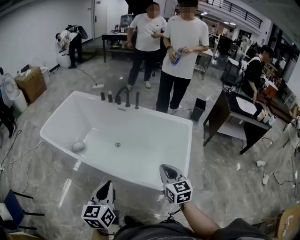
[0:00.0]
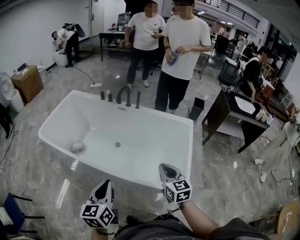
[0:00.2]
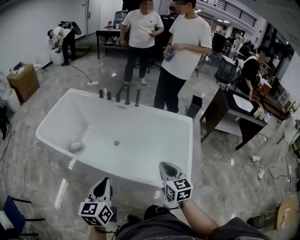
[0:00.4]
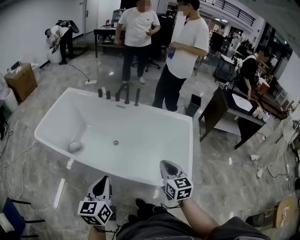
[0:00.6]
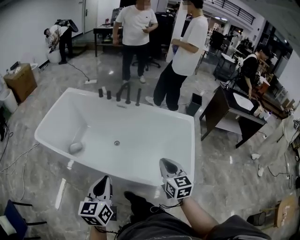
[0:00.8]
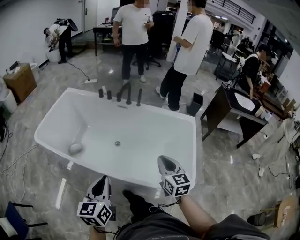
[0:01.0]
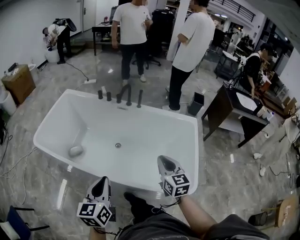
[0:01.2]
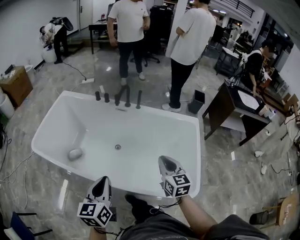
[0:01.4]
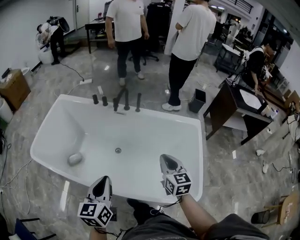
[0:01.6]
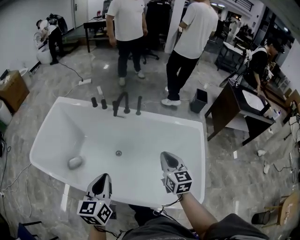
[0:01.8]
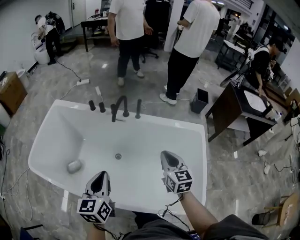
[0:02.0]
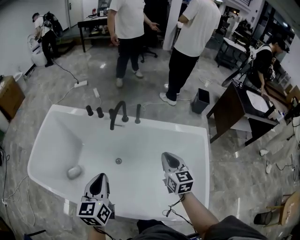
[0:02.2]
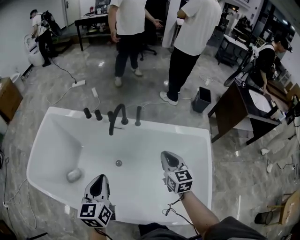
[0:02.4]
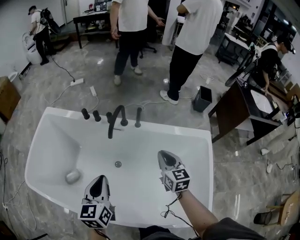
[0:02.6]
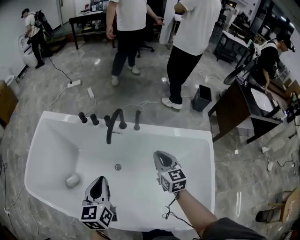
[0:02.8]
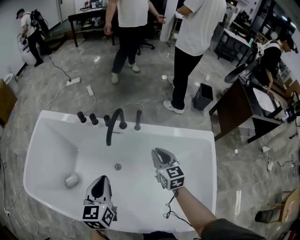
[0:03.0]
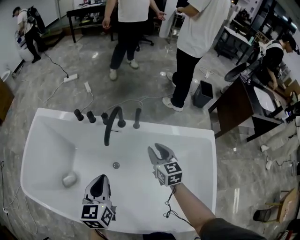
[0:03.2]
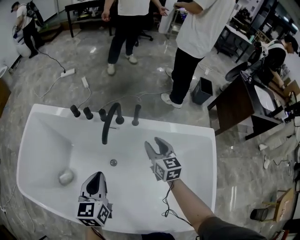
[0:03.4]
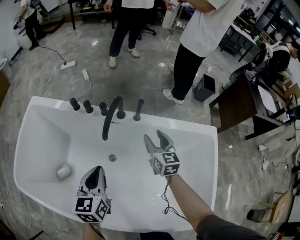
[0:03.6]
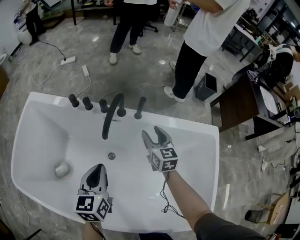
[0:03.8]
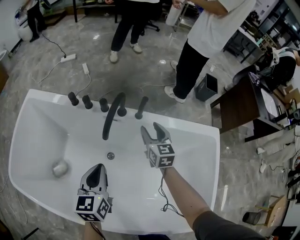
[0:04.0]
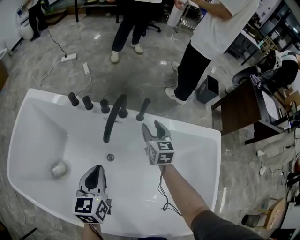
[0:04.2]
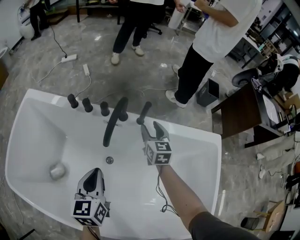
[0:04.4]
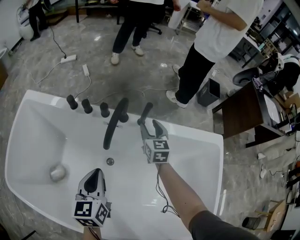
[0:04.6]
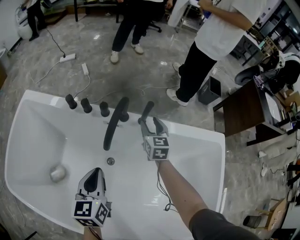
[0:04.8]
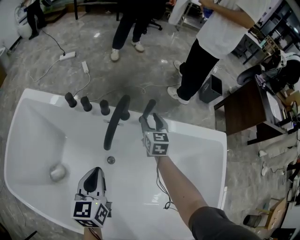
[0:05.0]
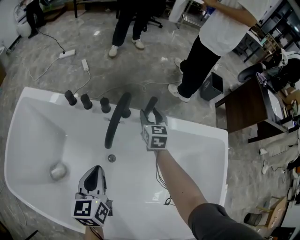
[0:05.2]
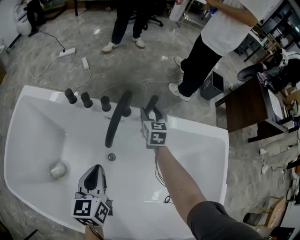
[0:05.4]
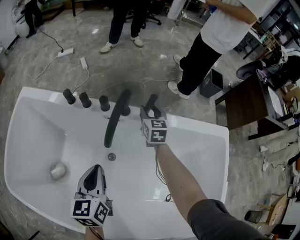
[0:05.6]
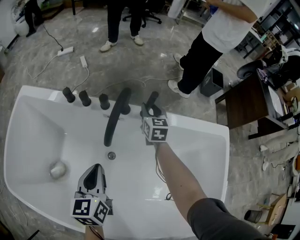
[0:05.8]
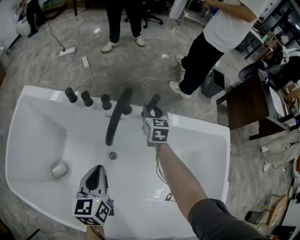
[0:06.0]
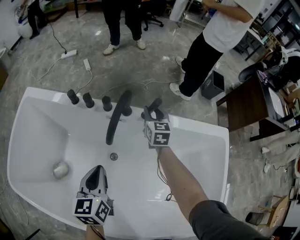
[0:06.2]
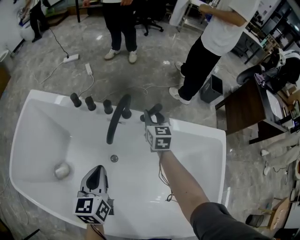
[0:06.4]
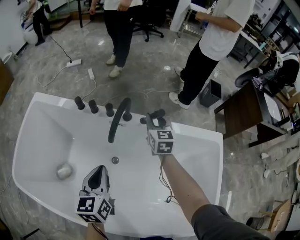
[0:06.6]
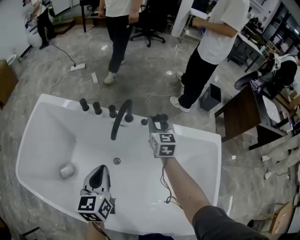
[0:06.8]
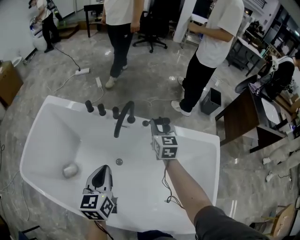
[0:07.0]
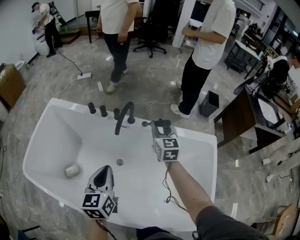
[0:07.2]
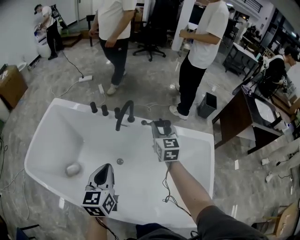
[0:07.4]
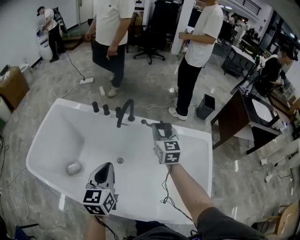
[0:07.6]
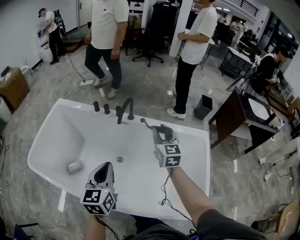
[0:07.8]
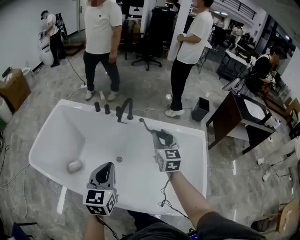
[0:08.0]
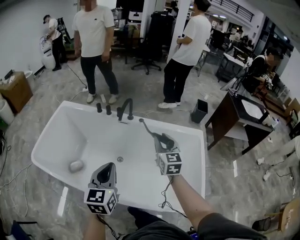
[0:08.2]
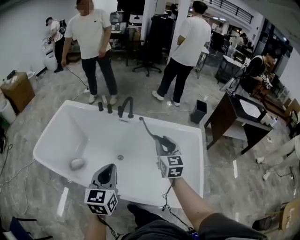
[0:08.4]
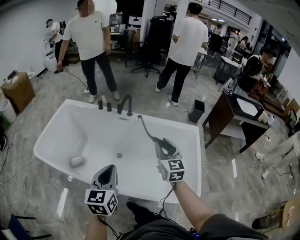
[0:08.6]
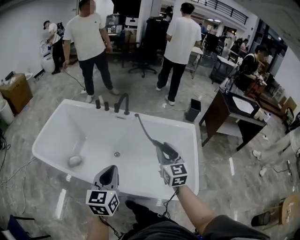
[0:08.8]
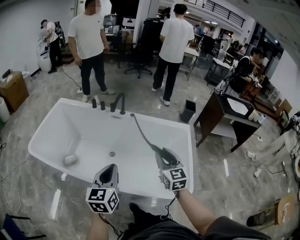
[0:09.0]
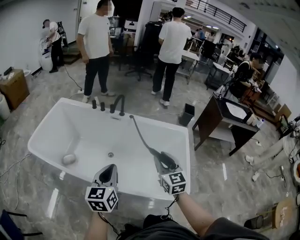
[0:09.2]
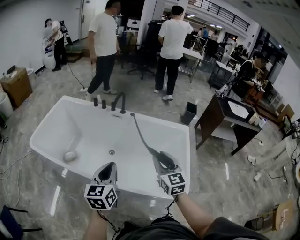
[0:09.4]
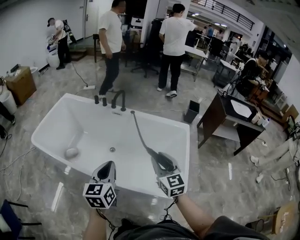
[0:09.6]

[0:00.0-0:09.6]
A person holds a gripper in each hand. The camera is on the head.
0.0 to 1.6 s: The grippers both shift forward and to the left by some 25 cm.
1.6 to 3.2 s: The two grippers go approximately 30 cm forward.
3.2 to 4.8 s: The right gripper shifts roughly 20 cm forward and downward, and opens up. The left gripper heads downward and forward, covering about 15 cm.
4.8 to 6.4 s: The grippers stay close to where they were, moving slightly.
6.4 to 8.0 s: The two grippers go approximately 35 cm backward and upward.
8.0 to 9.6 s: The left gripper travels backward and to the right by some 20 cm, while the right gripper is displaced backward by some 30 cm.

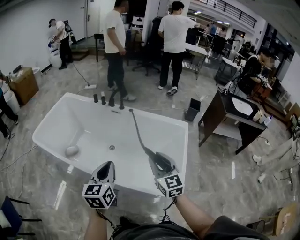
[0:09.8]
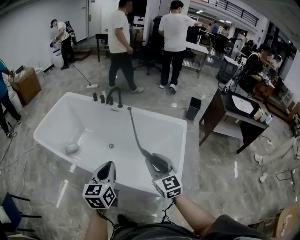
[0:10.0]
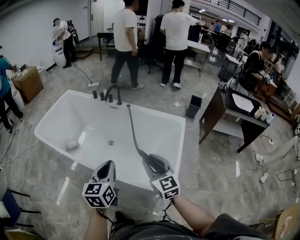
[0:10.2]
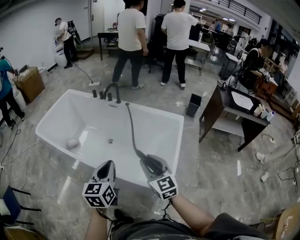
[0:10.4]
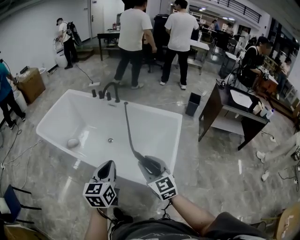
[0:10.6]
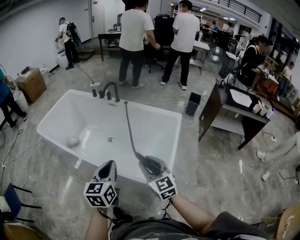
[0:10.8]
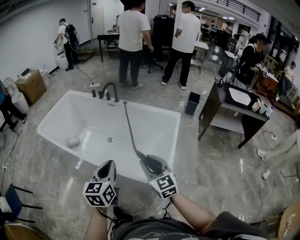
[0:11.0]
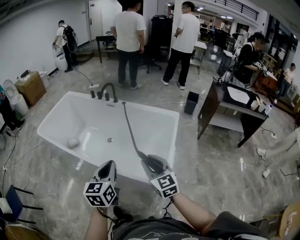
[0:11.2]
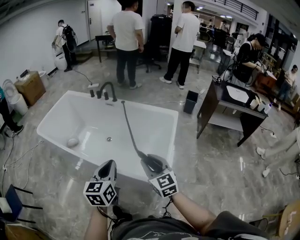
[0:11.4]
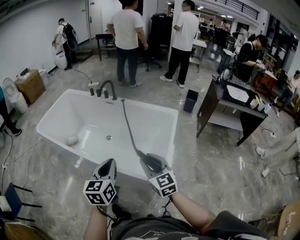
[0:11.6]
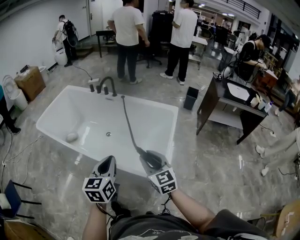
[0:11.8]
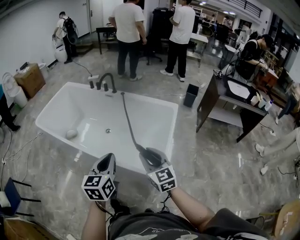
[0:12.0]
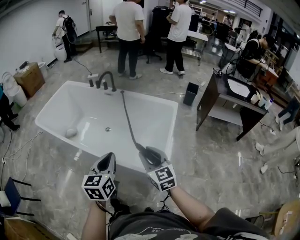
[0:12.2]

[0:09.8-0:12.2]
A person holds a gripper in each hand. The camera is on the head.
9.8 to 11.0 s: The grippers both shift backward and to the right by some 15 cm.
11.0 to 12.2 s: The grippers stay close to where they were, moving slightly.

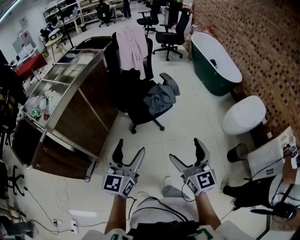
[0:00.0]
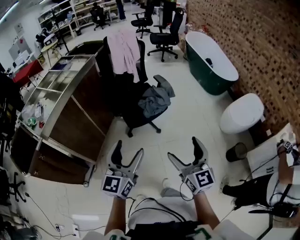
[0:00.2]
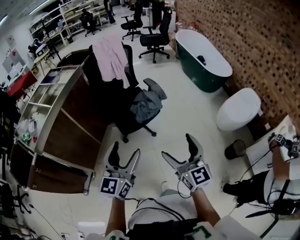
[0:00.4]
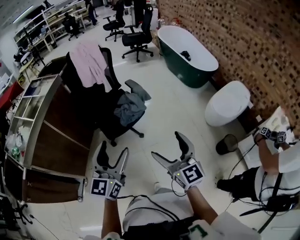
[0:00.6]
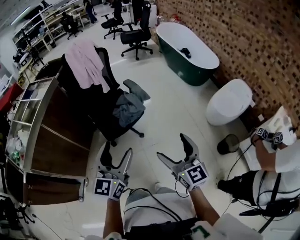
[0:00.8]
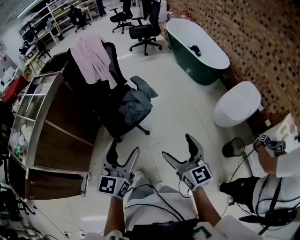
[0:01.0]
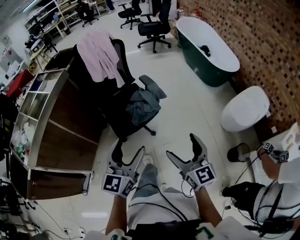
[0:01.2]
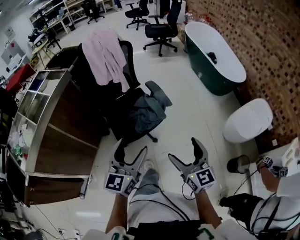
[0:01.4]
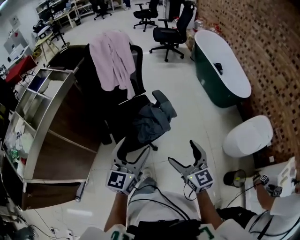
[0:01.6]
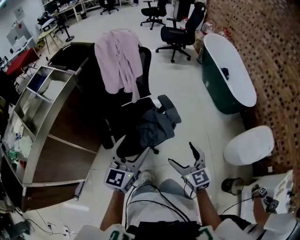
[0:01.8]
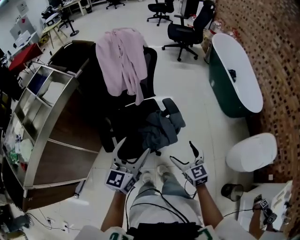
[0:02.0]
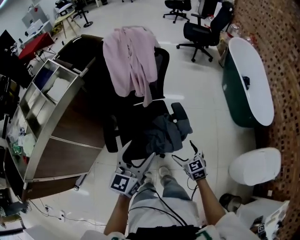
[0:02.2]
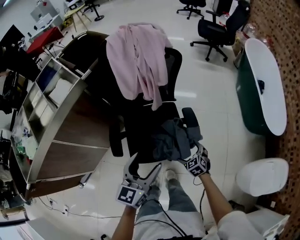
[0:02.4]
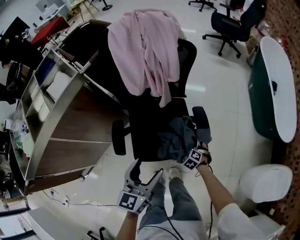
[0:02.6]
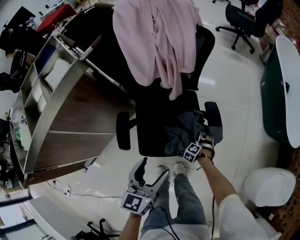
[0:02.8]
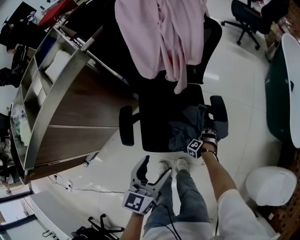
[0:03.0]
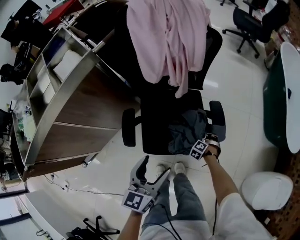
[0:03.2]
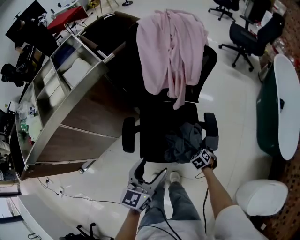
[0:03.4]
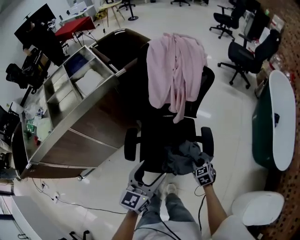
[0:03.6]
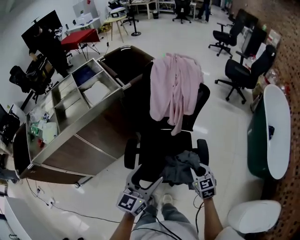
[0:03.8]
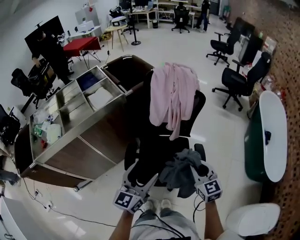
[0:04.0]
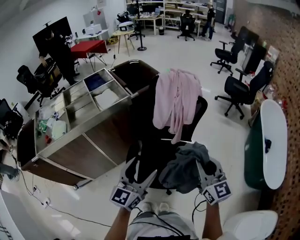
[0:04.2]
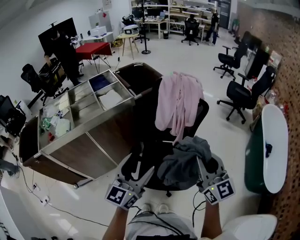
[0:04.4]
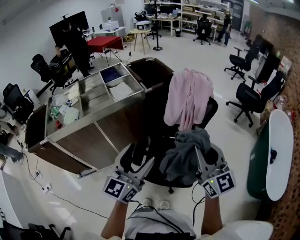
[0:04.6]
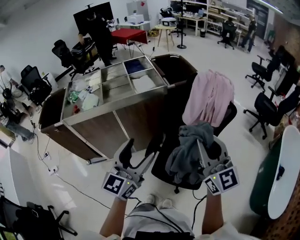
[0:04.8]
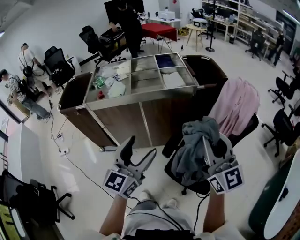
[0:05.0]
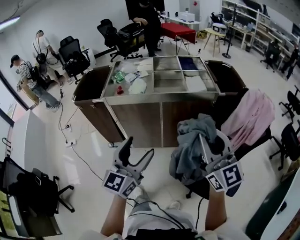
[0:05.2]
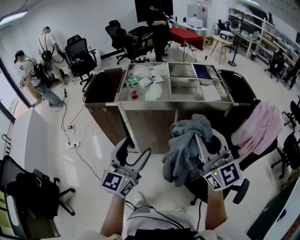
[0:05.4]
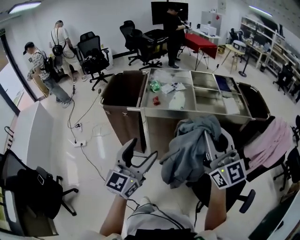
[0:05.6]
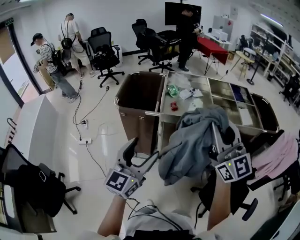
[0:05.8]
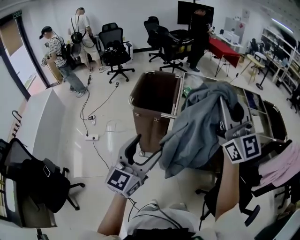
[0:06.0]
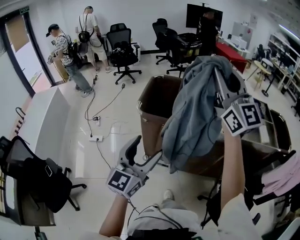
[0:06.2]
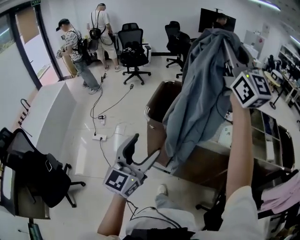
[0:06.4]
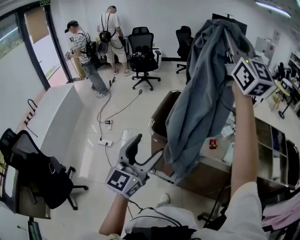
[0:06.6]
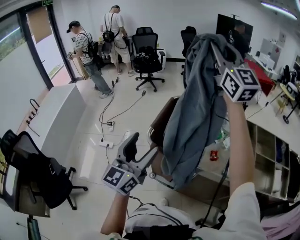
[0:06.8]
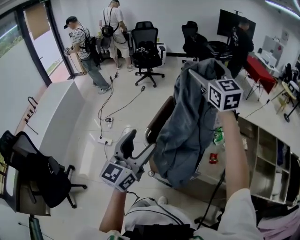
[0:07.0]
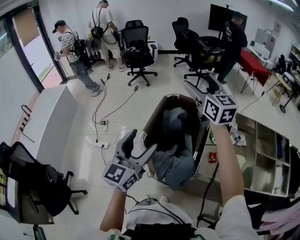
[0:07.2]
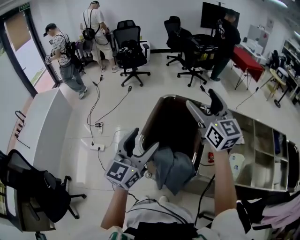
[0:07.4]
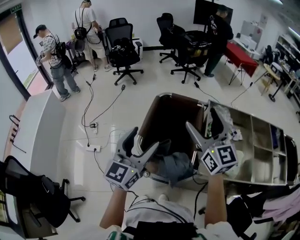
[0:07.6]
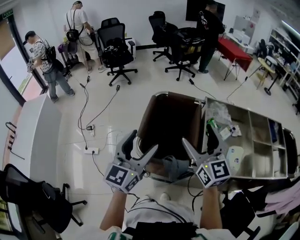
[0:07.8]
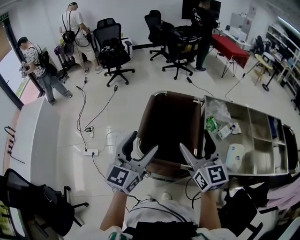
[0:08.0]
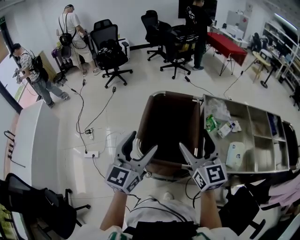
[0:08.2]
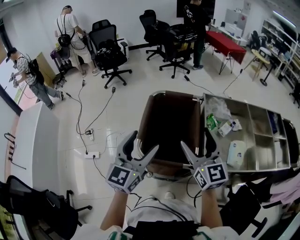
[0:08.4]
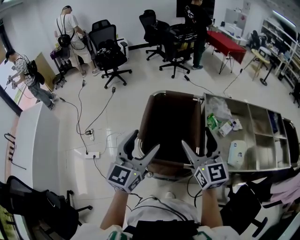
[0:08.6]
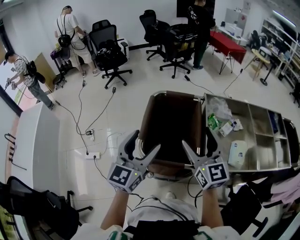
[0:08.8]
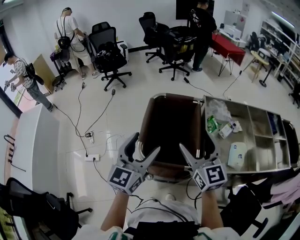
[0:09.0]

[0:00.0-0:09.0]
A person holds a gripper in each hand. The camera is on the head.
0.0 to 1.6 s: Both grippers move forward, roughly 40 cm.
1.6 to 3.0 s: The left gripper shifts by some 25 cm, and swivels roughly 30 degrees. The right gripper moves downward, approximately 50 cm, and angles its fingers downward, by about 50 degrees.
3.0 to 4.4 s: The left gripper shifts some 30 cm upward, and swivels some 30 degrees; the right gripper heads upward, covering roughly 70 cm, tips its fingers upward by about 70 degrees, and closes up.
4.4 to 6.0 s: The pair of grippers is taken some 70 cm. The left gripper turns by roughly 50 degrees, while the right gripper turns by some 50 degrees.
6.0 to 7.6 s: The right gripper goes some 35 cm forward and downward, rotates some 20 degrees, and opens up. Meanwhile the left gripper heads forward, covering about 35 cm.
7.6 to 9.0 s: The right gripper travels downward by about 10 cm.

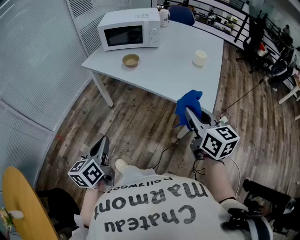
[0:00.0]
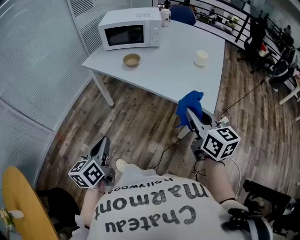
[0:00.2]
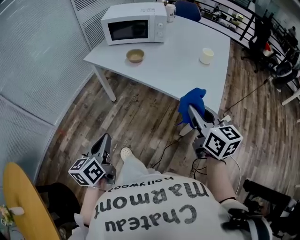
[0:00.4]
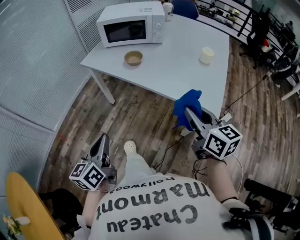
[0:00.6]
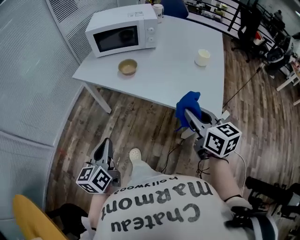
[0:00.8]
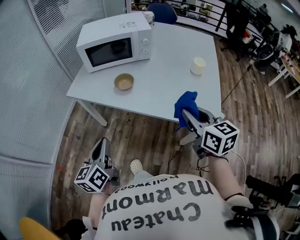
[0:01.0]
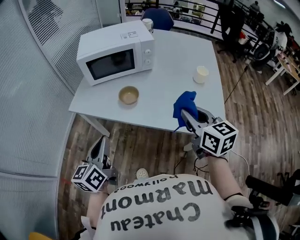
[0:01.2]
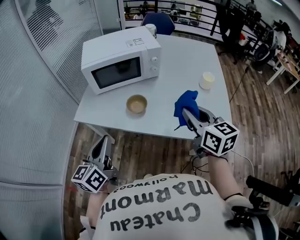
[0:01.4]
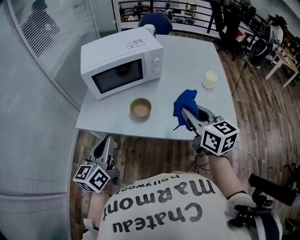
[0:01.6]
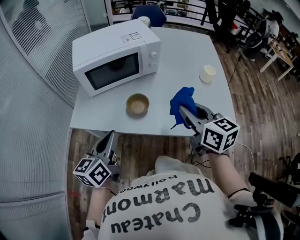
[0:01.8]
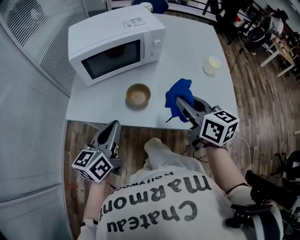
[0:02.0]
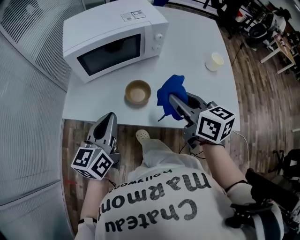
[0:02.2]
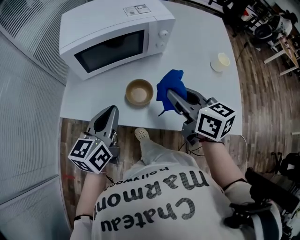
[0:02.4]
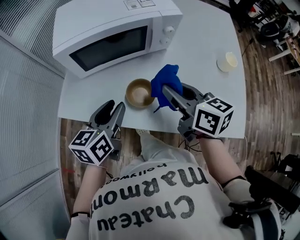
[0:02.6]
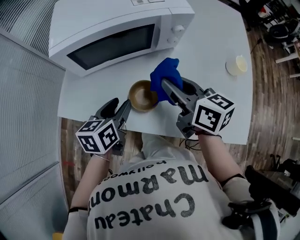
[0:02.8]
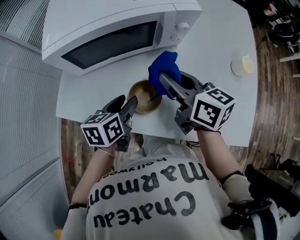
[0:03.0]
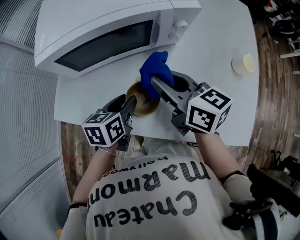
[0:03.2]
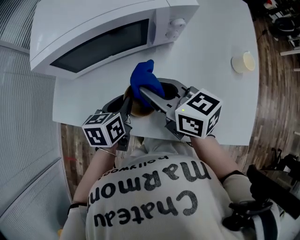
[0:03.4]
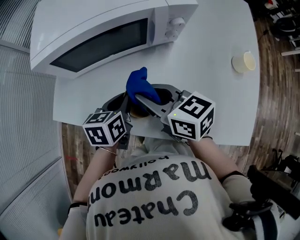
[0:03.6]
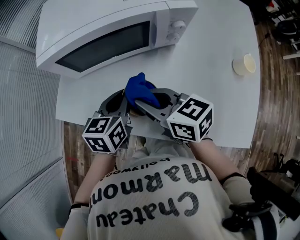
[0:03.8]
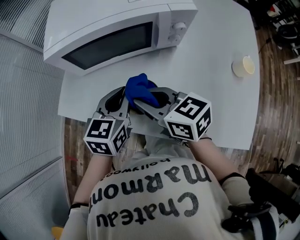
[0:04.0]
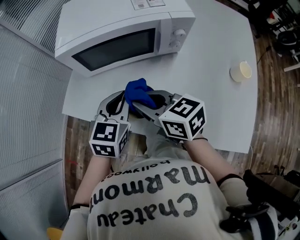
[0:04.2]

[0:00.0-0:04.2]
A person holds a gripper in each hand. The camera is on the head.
0.0 to 1.4 s: The two grippers go roughly 30 cm forward. The left gripper swivels approximately 20 degrees.
1.4 to 2.8 s: The right gripper is displaced forward, to the left and downward by roughly 25 cm, and changes its angle by about 20 degrees. Meanwhile the left gripper travels forward and downward by some 25 cm, rotates approximately 30 degrees, and opens.
2.8 to 4.2 s: The right gripper moves to the left, approximately 10 cm, and rotates some 30 degrees, while the left gripper shifts by some 5 cm, turns by some 30 degrees, and closes its fingers.
